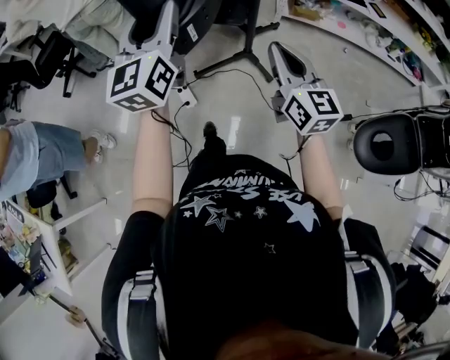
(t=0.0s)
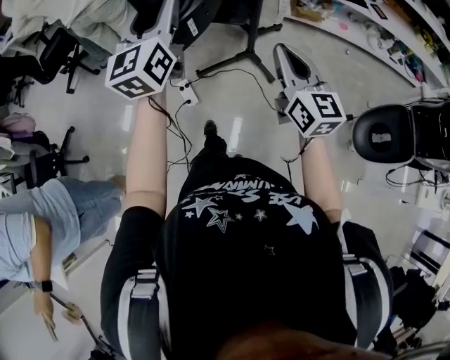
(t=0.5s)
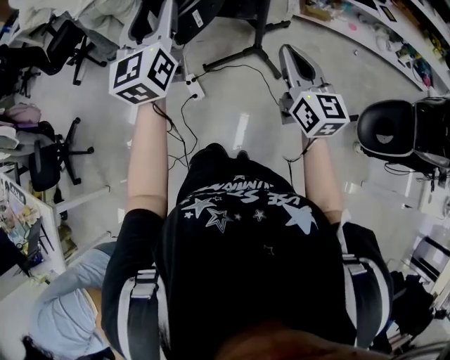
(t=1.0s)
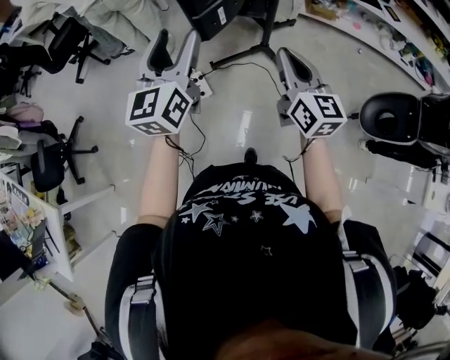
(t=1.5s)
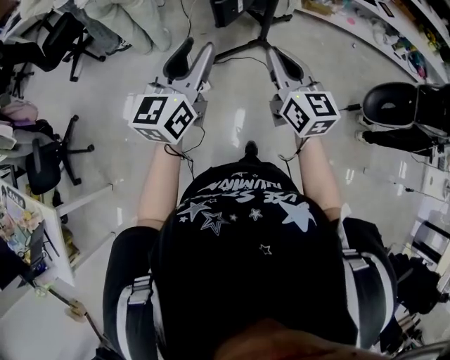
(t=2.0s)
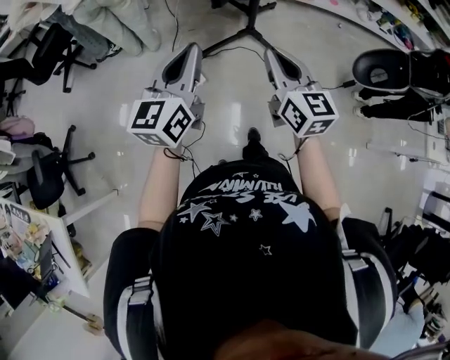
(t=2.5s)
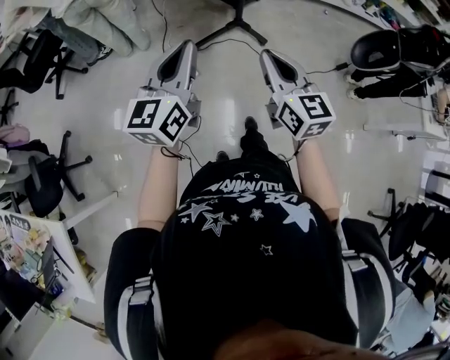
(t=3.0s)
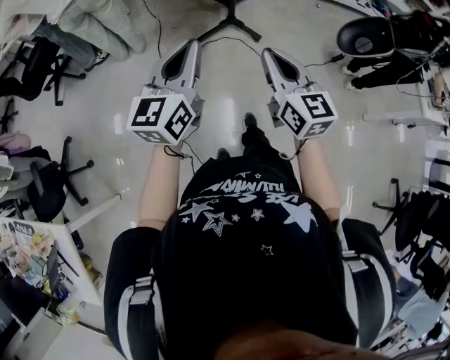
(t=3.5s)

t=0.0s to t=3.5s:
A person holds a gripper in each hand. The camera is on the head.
t=0.0s to t=2.0s: The right gripper heads to the left and backward, covering some 15 cm. The left gripper goes roughly 15 cm backward, downward and to the left.
t=2.0s to t=3.5s: Both grippers move backward, about 15 cm. The left gripper closes up.

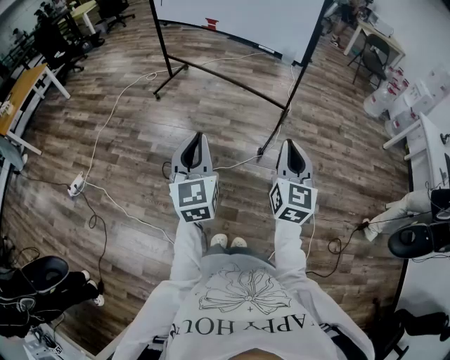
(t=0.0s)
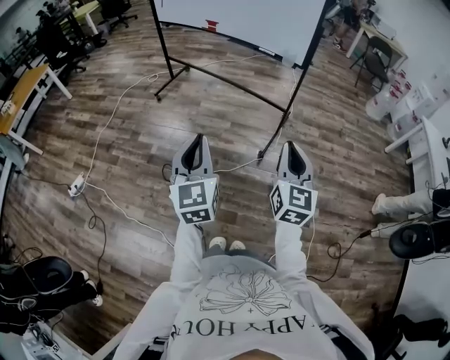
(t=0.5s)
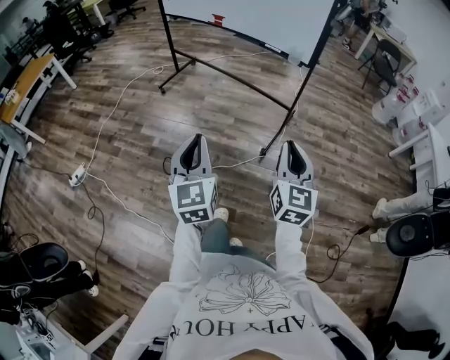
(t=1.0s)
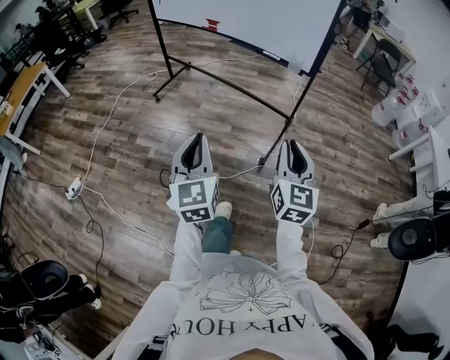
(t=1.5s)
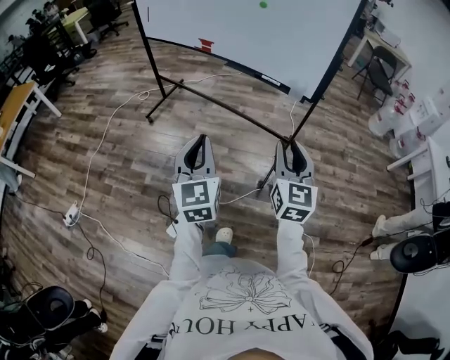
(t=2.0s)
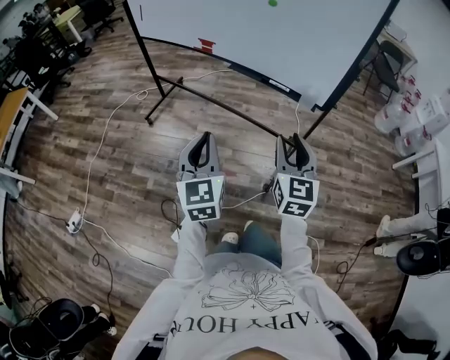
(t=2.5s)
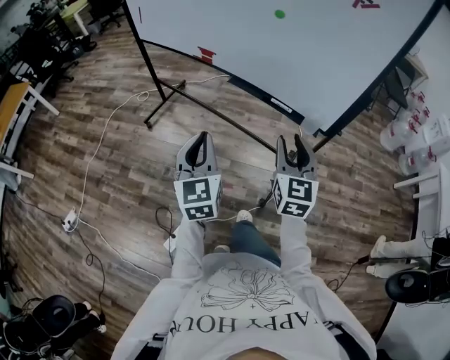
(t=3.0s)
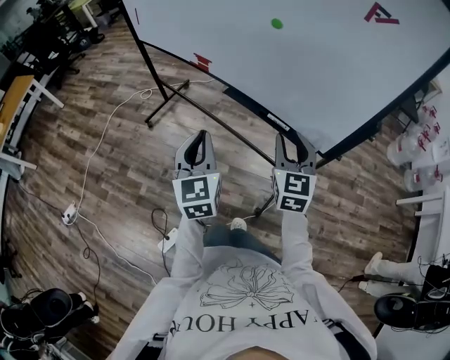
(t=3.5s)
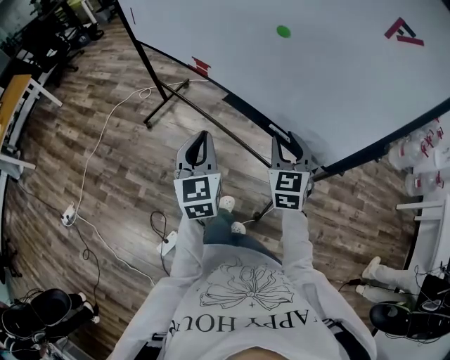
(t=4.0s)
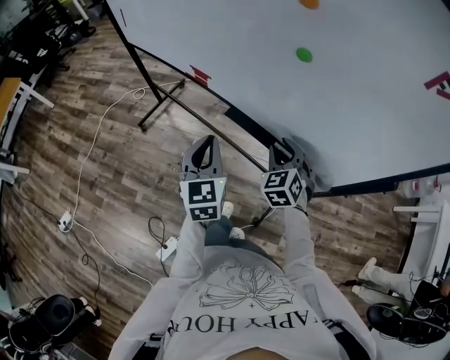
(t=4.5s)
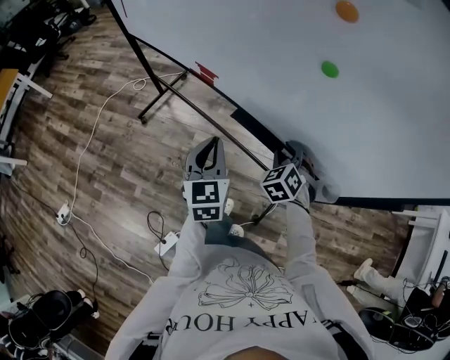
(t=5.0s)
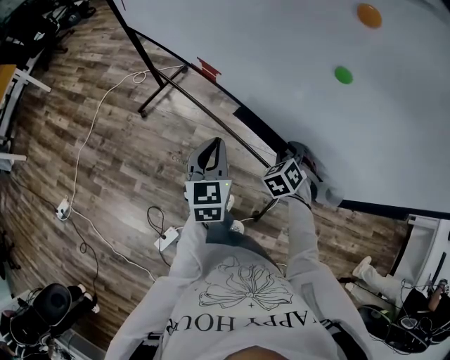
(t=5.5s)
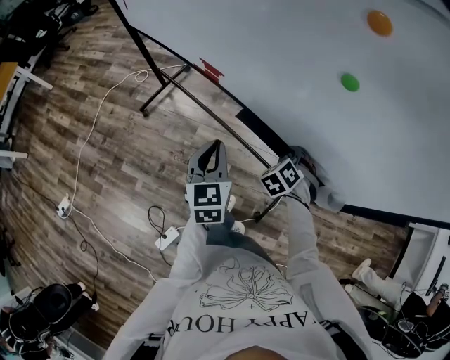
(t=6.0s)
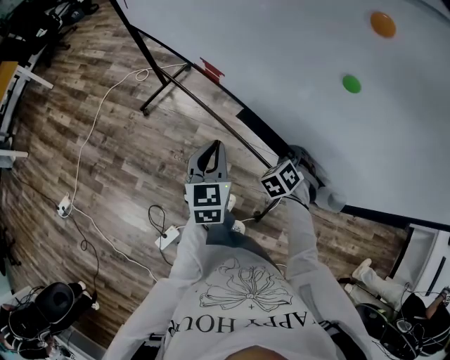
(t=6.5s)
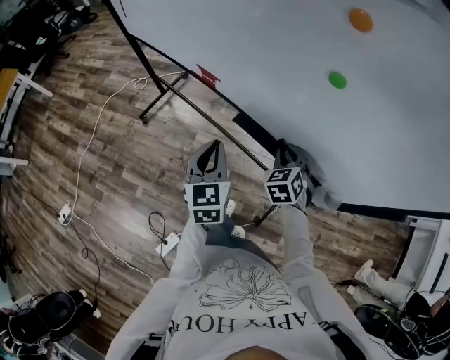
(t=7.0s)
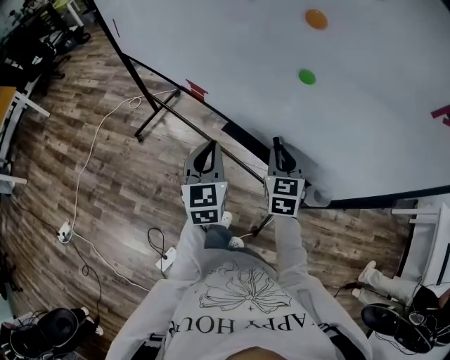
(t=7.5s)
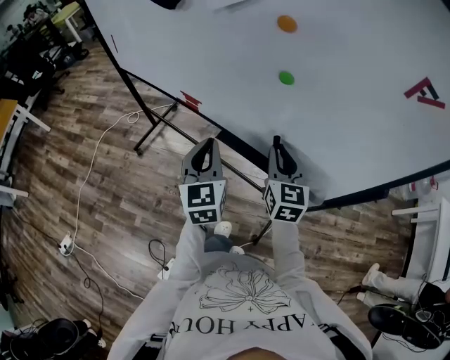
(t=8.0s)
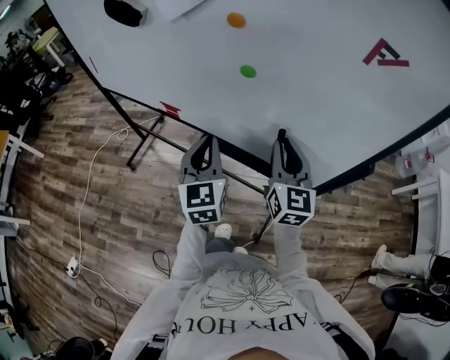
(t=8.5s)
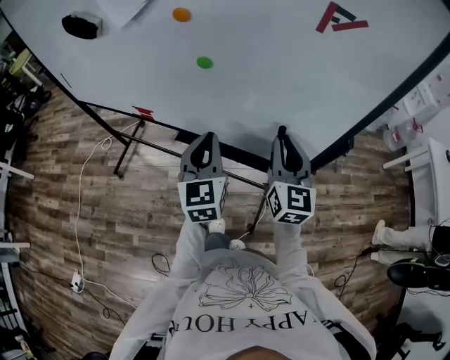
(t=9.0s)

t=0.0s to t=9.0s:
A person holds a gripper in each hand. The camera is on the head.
t=0.0s to t=2.0s: Both grippers move forward, about 30 cm. The right gripper opens.
t=2.0s to t=4.5s: The two grippers travel together, forward, roughly 50 cm. The right gripper changes its angle by roughly 50 degrees.
t=4.5s to t=7.0s: The left gripper ends up some 5 cm from where it was, while the right gripper travels downward and forward by approximately 10 cm.
t=7.0s to t=9.0s: The left gripper shifts about 20 cm to the right and upward, and rotates about 20 degrees. The right gripper is displaced upward, to the right and backward by some 30 cm, and tips its fingers upward by approximately 40 degrees.

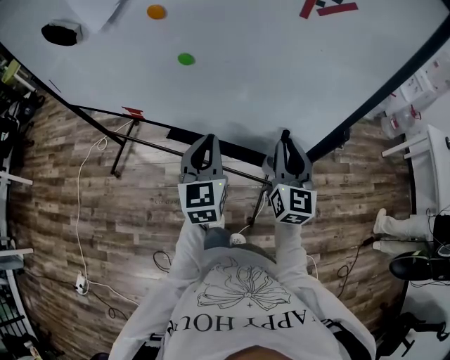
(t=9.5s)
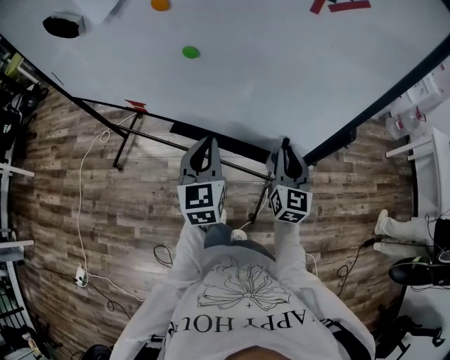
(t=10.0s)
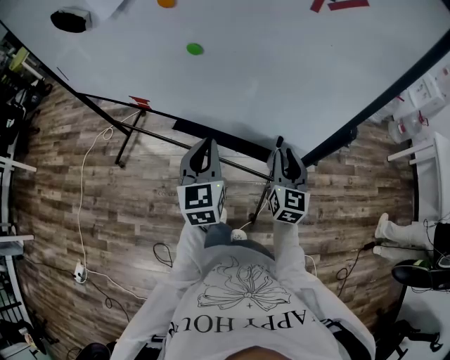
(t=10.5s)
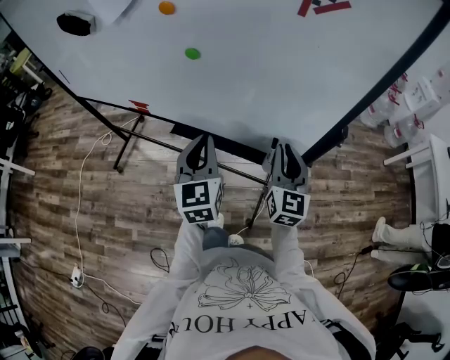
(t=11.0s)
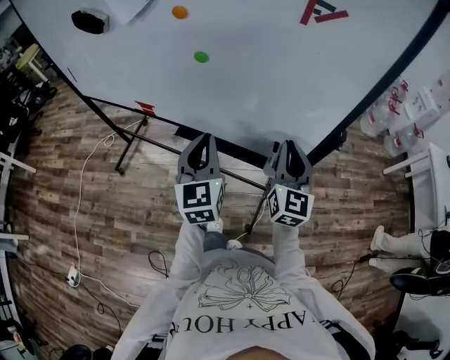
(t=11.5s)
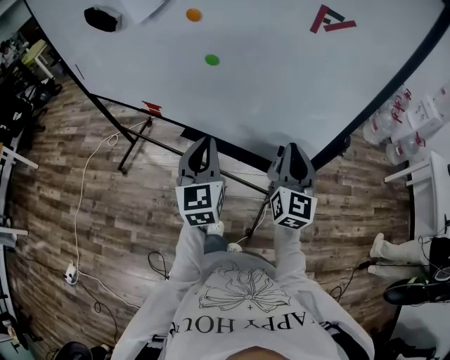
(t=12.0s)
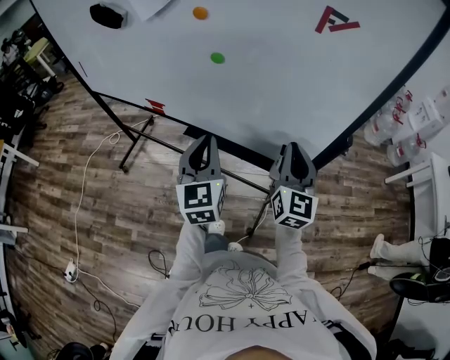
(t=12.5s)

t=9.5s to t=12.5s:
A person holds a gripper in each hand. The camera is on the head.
t=9.5s to t=11.0s: The right gripper travels downward and back again, approximately 10 cm each way.
t=11.0s to t=12.5s: The right gripper heads upward, covering approximately 5 cm.

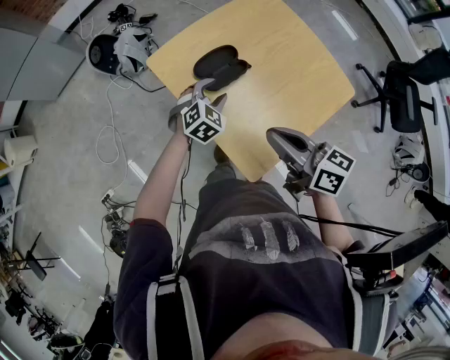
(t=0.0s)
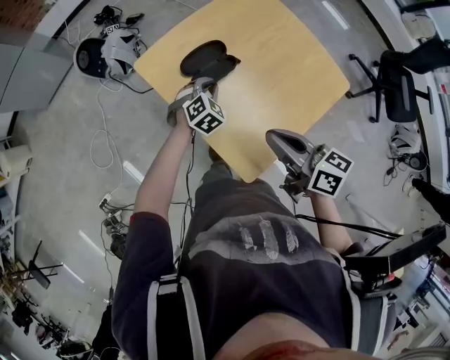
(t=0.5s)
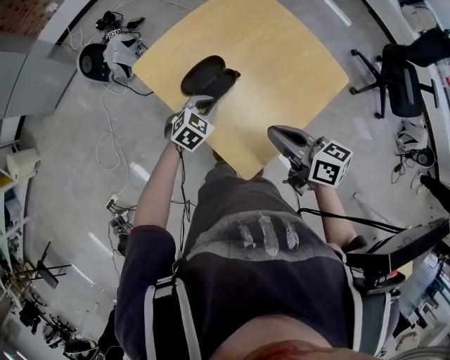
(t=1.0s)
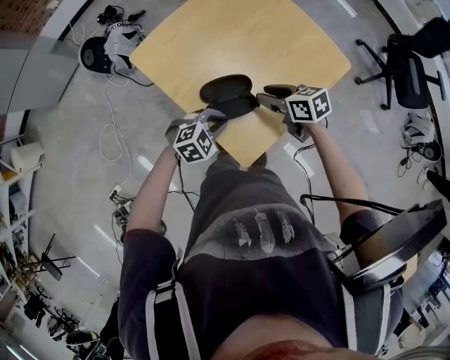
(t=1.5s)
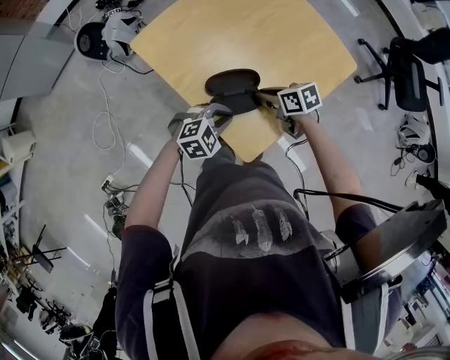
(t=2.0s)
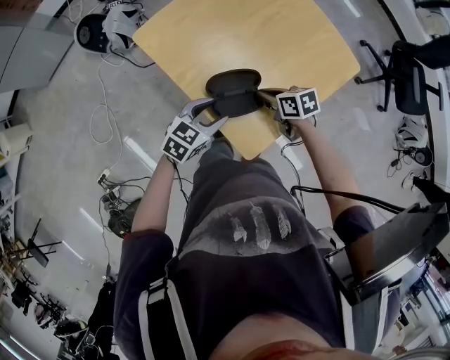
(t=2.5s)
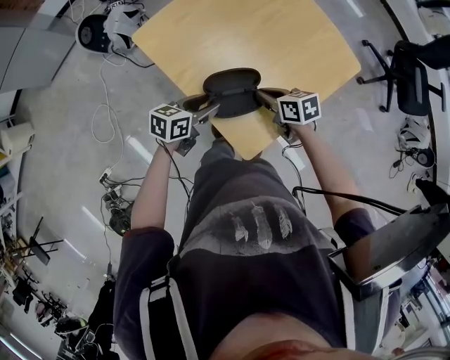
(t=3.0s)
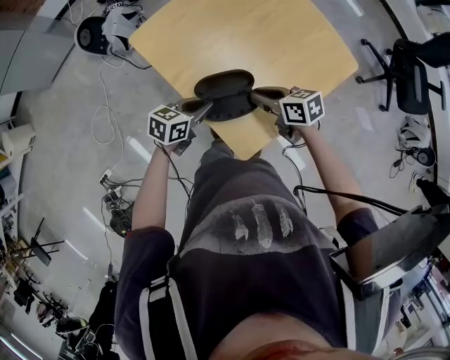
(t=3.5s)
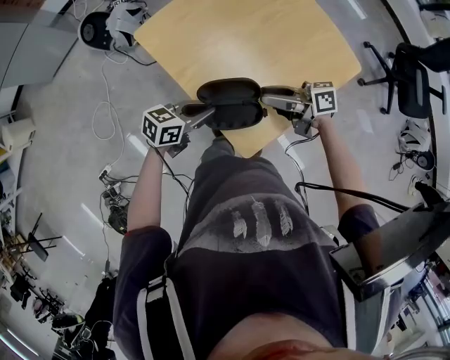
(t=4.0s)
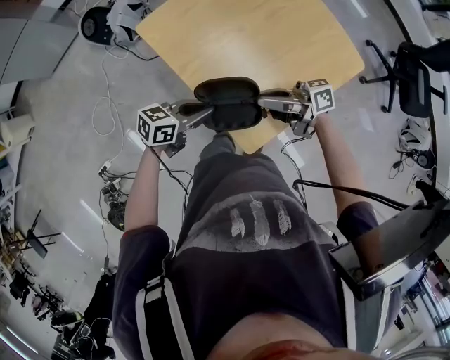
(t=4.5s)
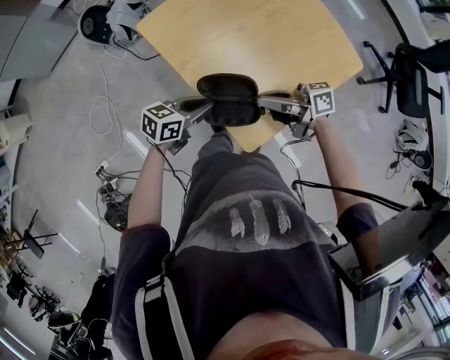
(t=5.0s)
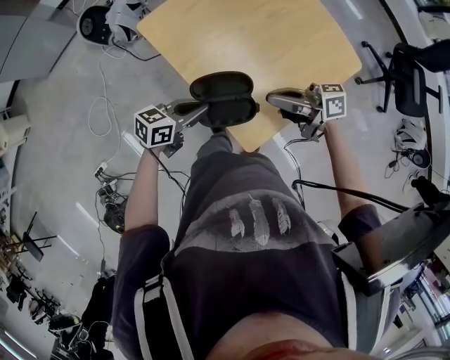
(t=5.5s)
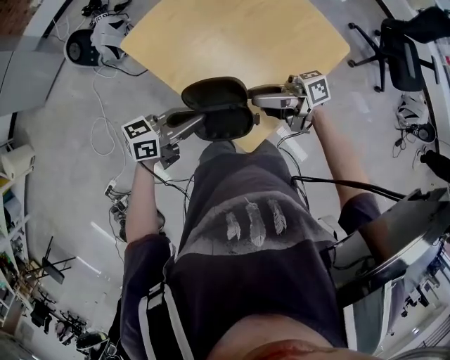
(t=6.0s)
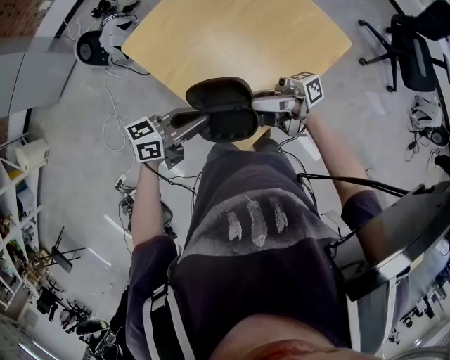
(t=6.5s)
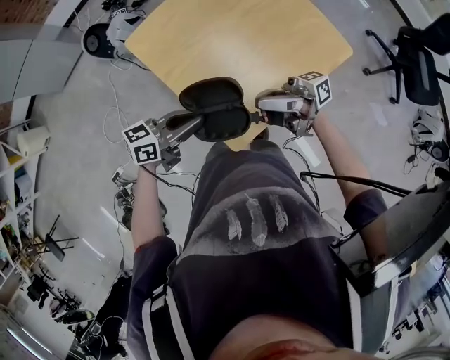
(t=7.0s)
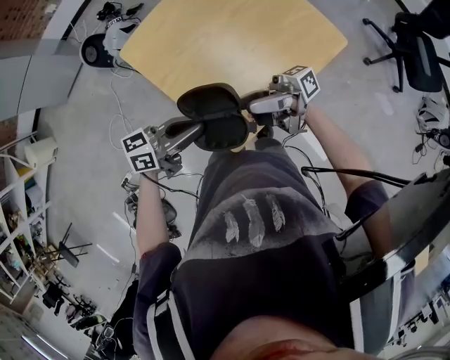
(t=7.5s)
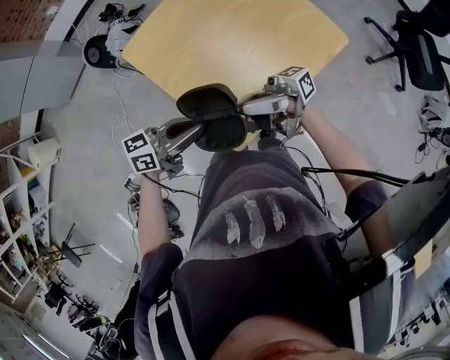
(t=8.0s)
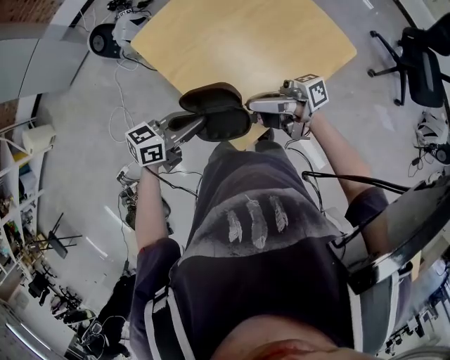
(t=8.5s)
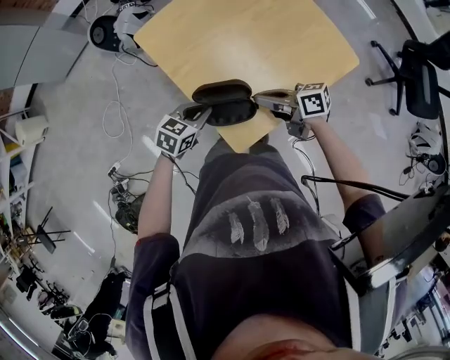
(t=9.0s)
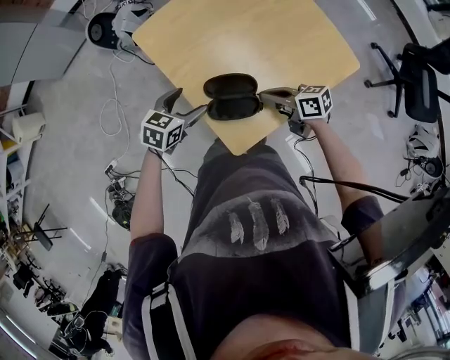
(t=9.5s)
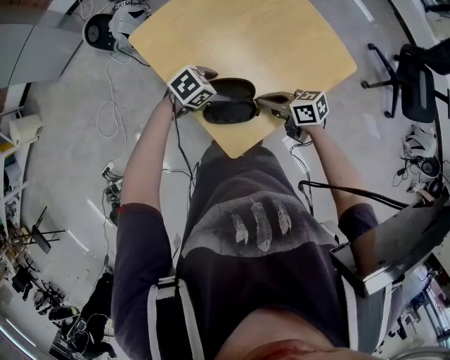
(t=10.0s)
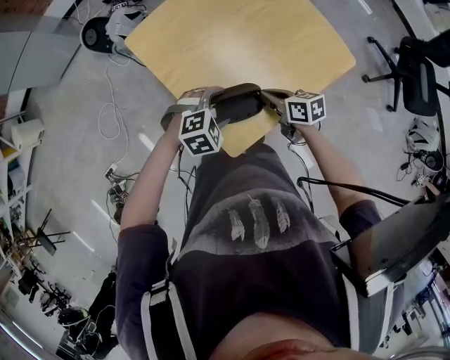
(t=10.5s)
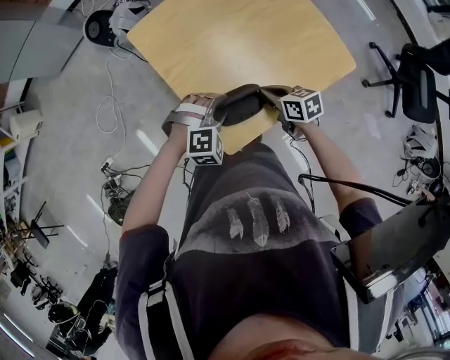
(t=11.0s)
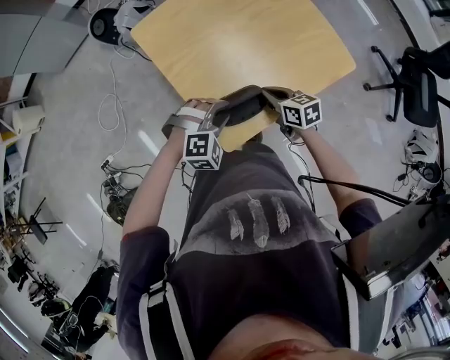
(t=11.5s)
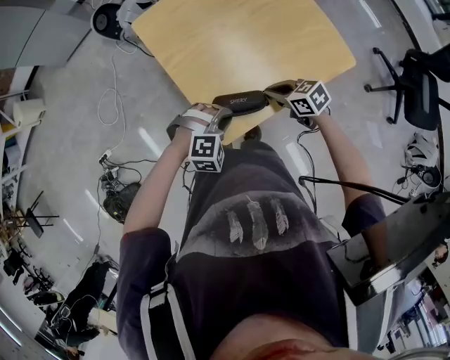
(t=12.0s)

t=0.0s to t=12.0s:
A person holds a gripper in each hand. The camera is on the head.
t=0.0s to t=2.0s: The right gripper goes approximately 25 cm downward, and tips its fingers downward by approximately 30 degrees; the left gripper moves roughly 20 cm, rotates approximately 30 degrees, and closes up.
t=2.0s to t=4.0s: The right gripper moves upward, approximately 10 cm, tips its fingers upward by roughly 40 degrees, and opens up, while the left gripper moves approximately 5 cm, rolls counterclockwise, seen from behind, by some 50 degrees, and opens and closes again.
t=4.0s to t=6.0s: The right gripper moves roughly 5 cm, and closes and opens again. Meanwhile the left gripper heads upward, covering roughly 5 cm.
t=6.0s to t=8.0s: The left gripper ends up some 10 cm from where it was. The right gripper shifts approximately 10 cm upward, tilts its fingers roughly 30 degrees upward, and closes.
t=8.0s to t=10.0s: Both grippers travel together downward, roughly 20 cm. The left gripper points its fingers some 40 degrees further downward, and opens, while the right gripper points its fingers approximately 70 degrees further downward.
t=10.0s to t=12.0s: The right gripper changes place by some 5 cm, and changes its angle by some 20 degrees, while the left gripper changes place by some 15 cm, rolls clockwise, seen from behind, by about 40 degrees, and closes its fingers.
